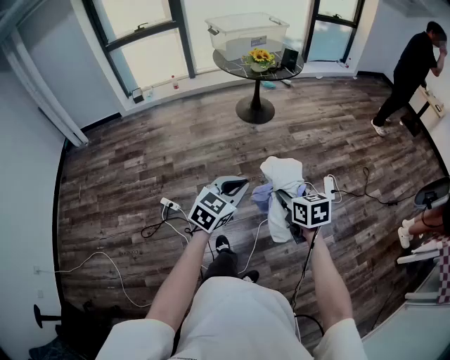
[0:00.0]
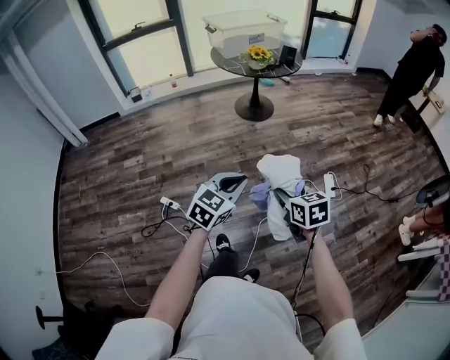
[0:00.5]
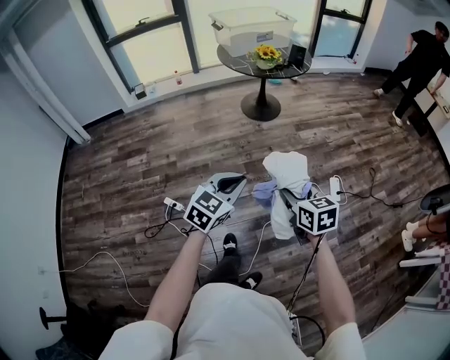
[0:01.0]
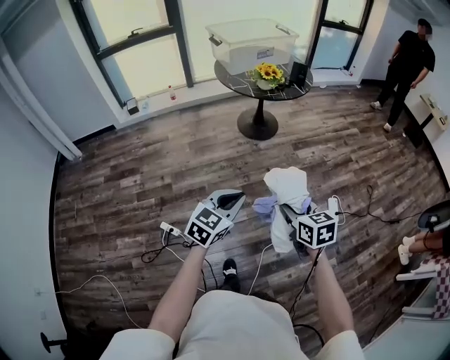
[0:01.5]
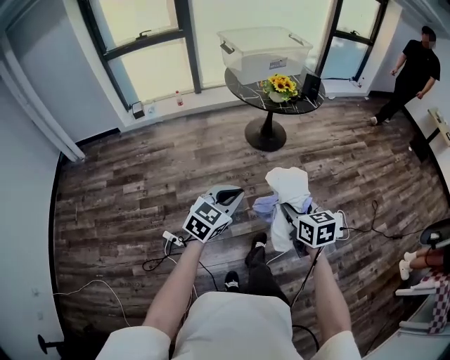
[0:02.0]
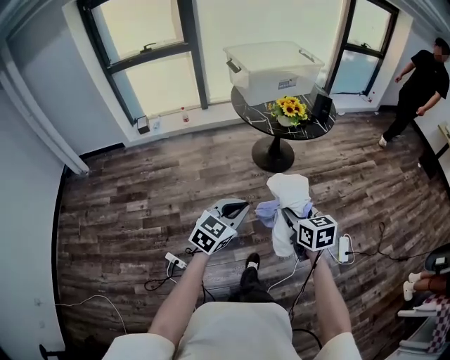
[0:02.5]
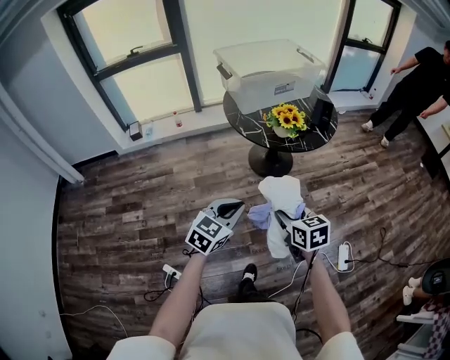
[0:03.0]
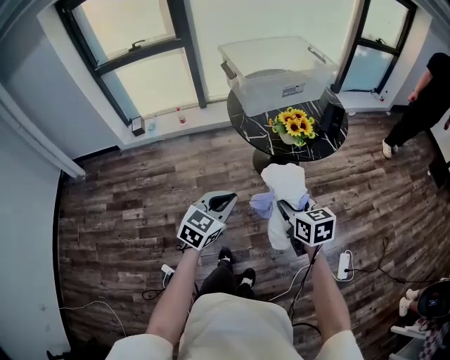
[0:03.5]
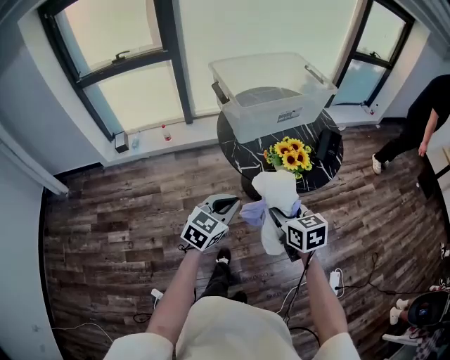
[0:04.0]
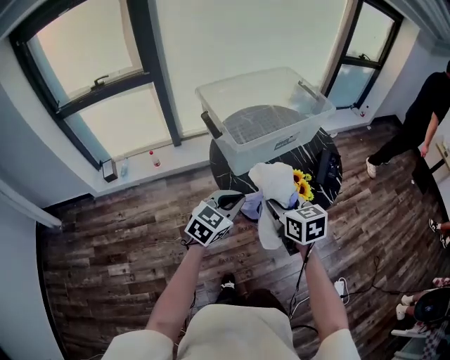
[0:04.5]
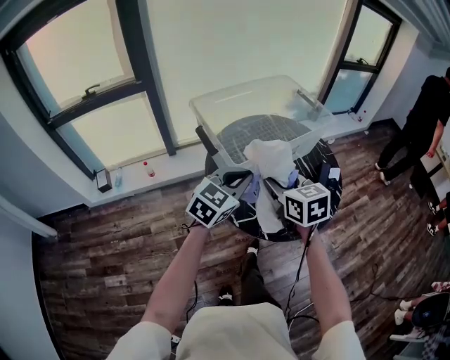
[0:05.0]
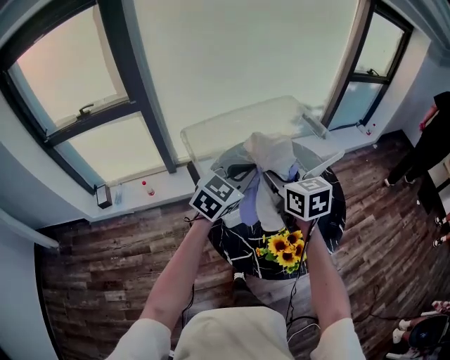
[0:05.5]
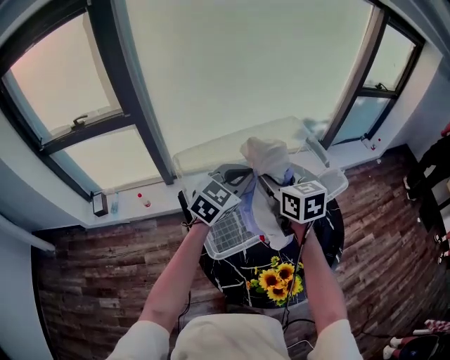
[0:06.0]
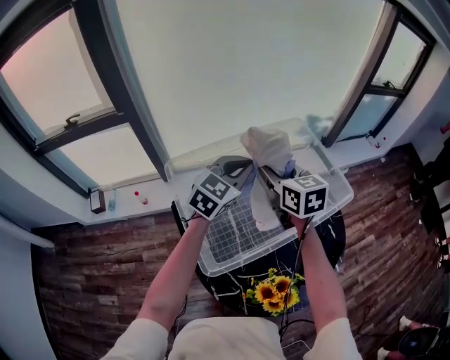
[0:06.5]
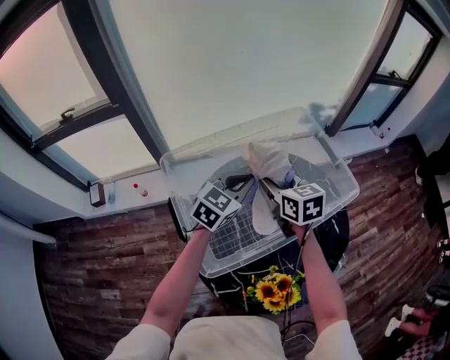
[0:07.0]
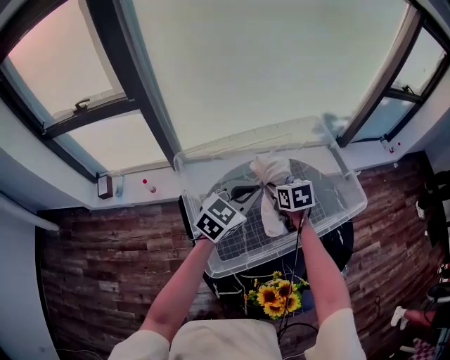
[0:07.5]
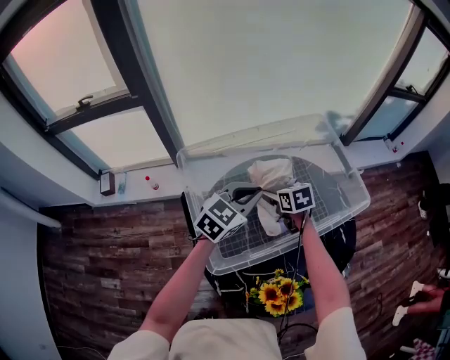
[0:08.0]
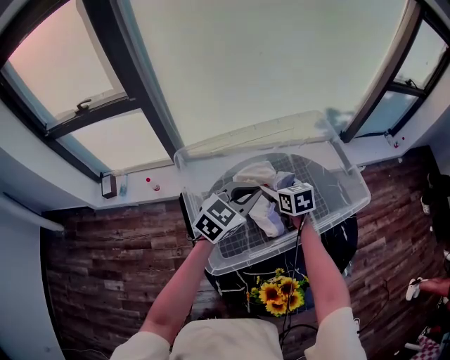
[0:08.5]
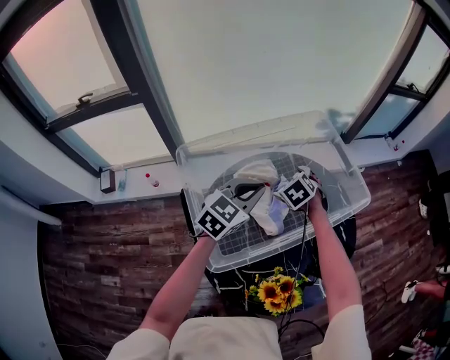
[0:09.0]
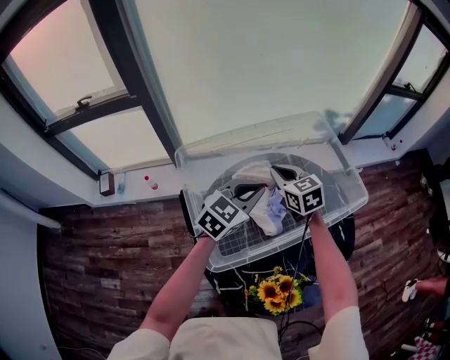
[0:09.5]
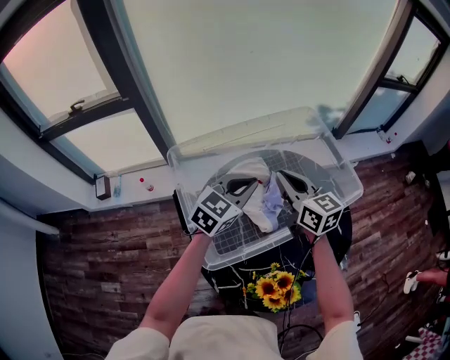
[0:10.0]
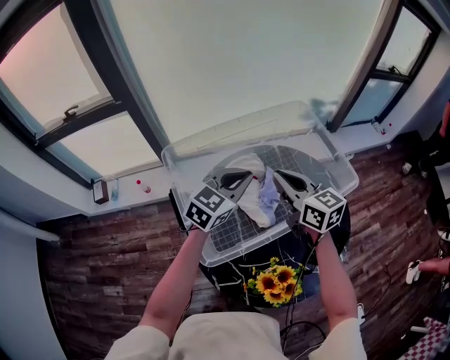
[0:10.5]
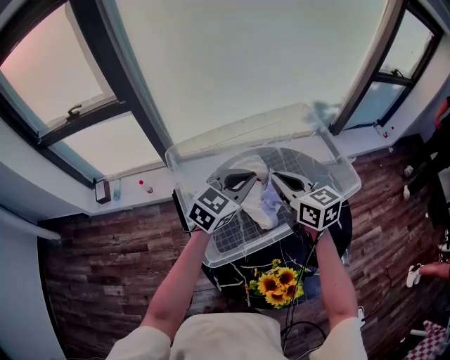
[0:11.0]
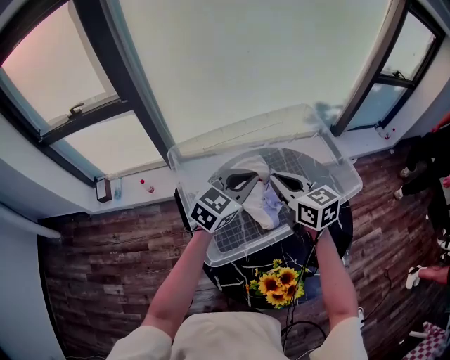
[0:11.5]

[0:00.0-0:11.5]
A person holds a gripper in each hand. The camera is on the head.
0:00.0 to 0:02.0: Both grippers move forward and to the left, some 25 cm.
0:02.0 to 0:04.0: Both grippers are carried forward, roughly 50 cm.
0:04.0 to 0:06.0: The pair of grippers is taken forward, roughly 60 cm.
0:06.0 to 0:07.5: The left gripper is displaced downward by about 10 cm; the right gripper shifts approximately 20 cm downward and forward, and turns by about 20 degrees.
0:07.5 to 0:09.5: The right gripper heads upward, covering about 5 cm, turns by approximately 20 degrees, and opens and closes again.
0:09.5 to 0:11.5: The right gripper shifts approximately 10 cm backward and upward.

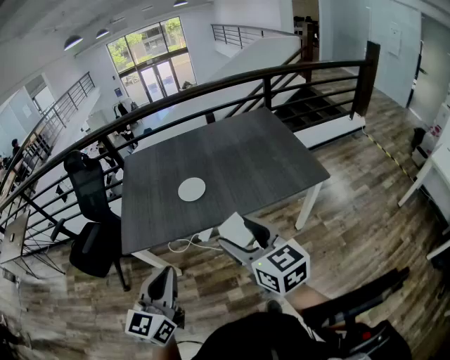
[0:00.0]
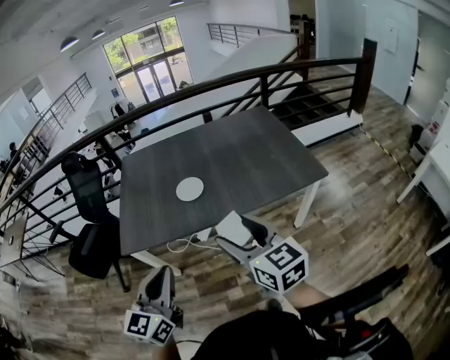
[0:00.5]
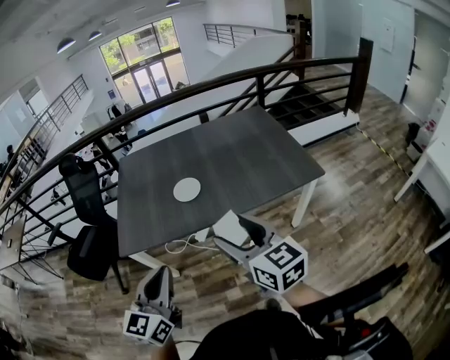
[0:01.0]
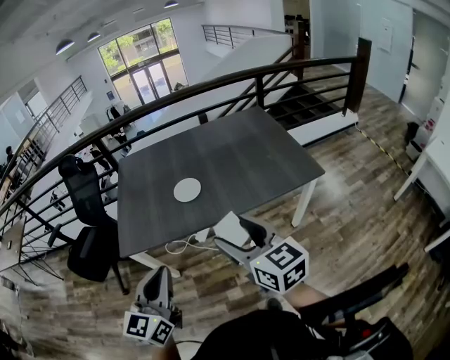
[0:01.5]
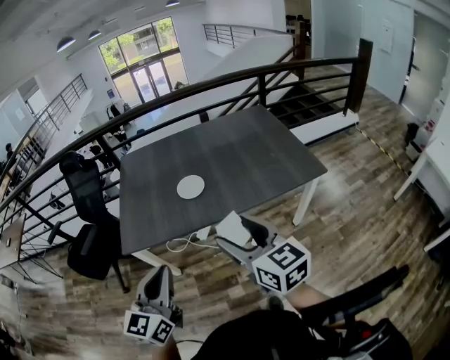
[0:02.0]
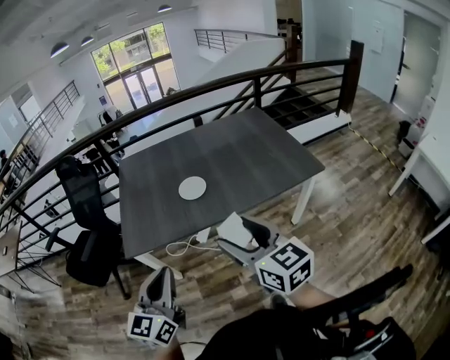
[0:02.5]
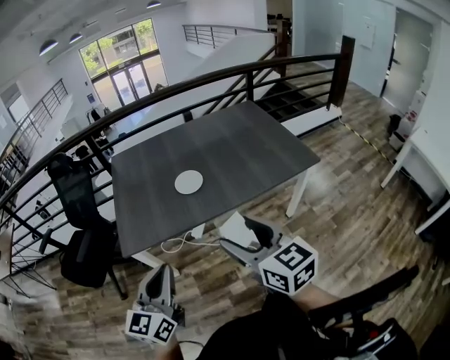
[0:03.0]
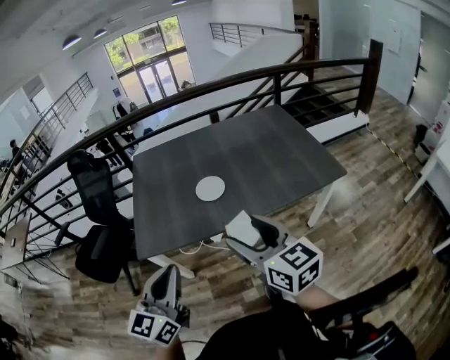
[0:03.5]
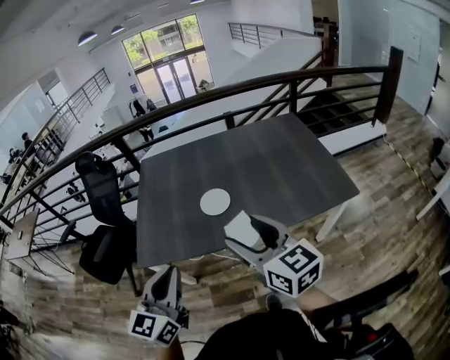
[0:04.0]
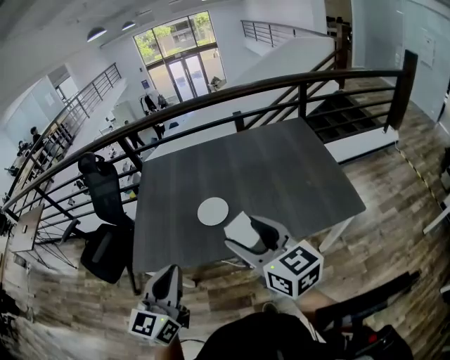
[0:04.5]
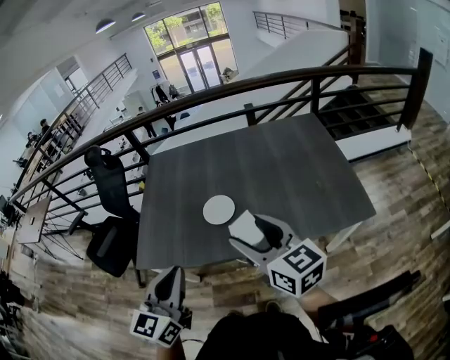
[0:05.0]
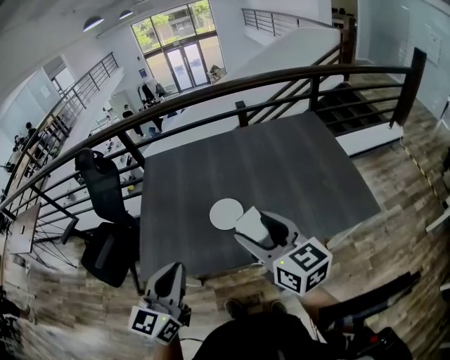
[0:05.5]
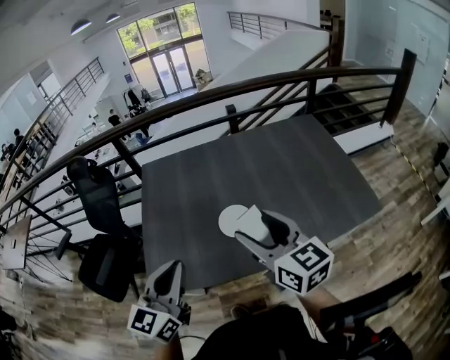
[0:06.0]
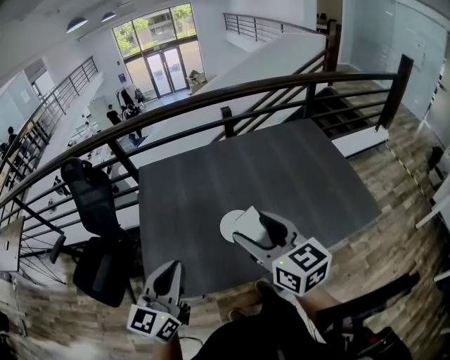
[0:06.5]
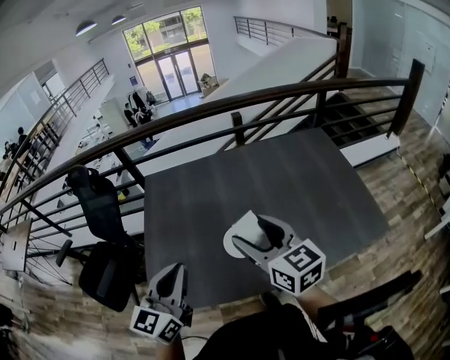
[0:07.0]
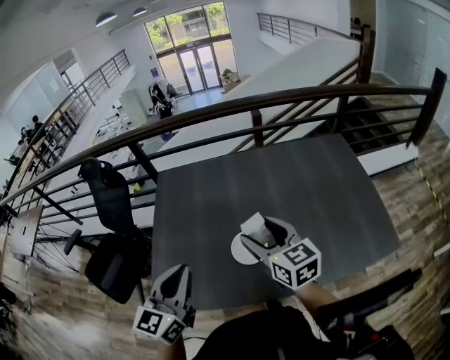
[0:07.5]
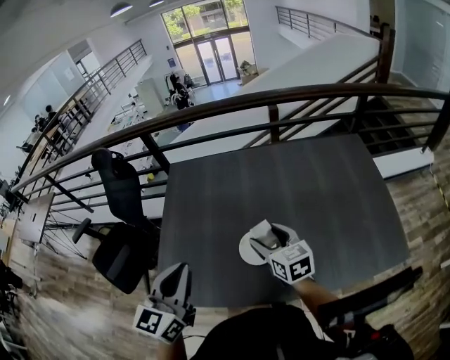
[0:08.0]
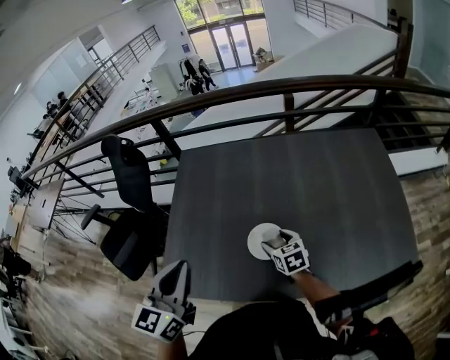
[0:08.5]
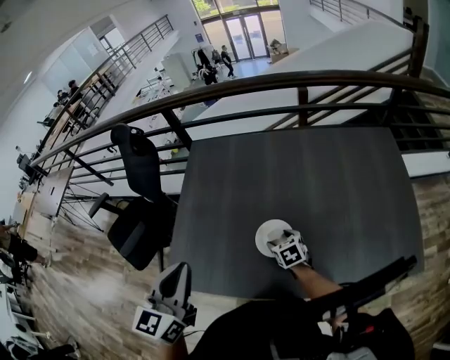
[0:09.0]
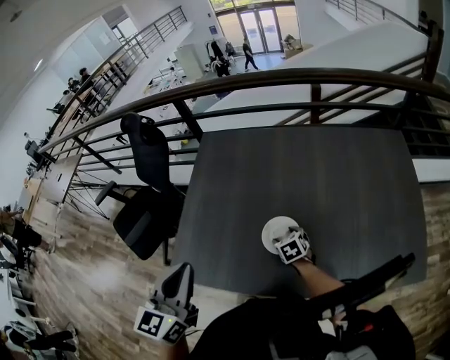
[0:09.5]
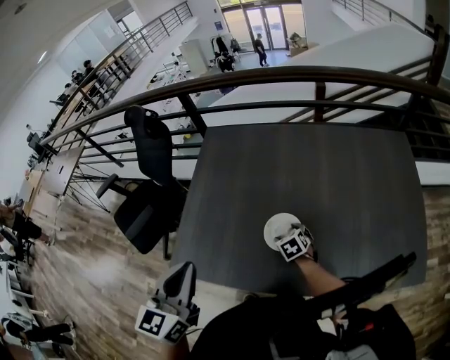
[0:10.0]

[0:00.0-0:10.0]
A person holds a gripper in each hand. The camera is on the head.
0:00.0 to 0:02.0: The grippers stay close to where they were, moving slightly.
0:02.0 to 0:04.0: The grippers both shift forward by about 15 cm.
0:04.0 to 0:06.0: Both grippers move forward, some 25 cm.
0:06.0 to 0:08.0: The right gripper shifts roughly 25 cm forward and downward, while the left gripper travels forward by roughly 15 cm.
0:08.0 to 0:10.0: The right gripper heads downward, covering some 25 cm, and tilts its fingers roughly 40 degrees downward.

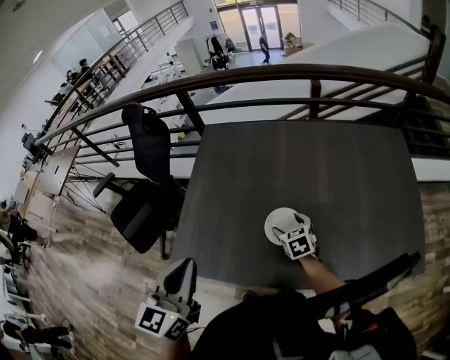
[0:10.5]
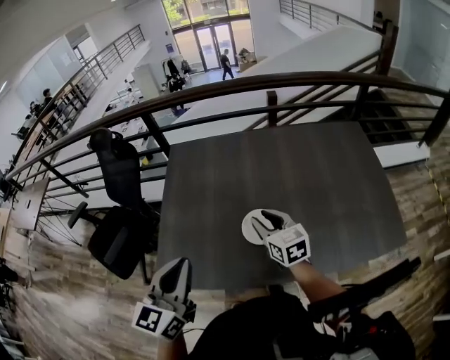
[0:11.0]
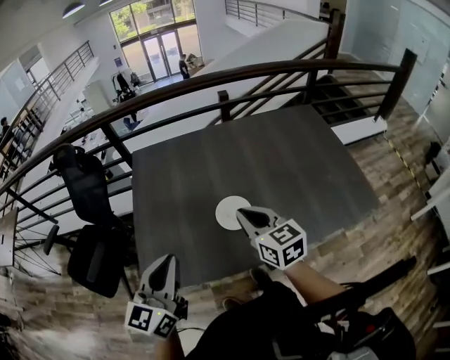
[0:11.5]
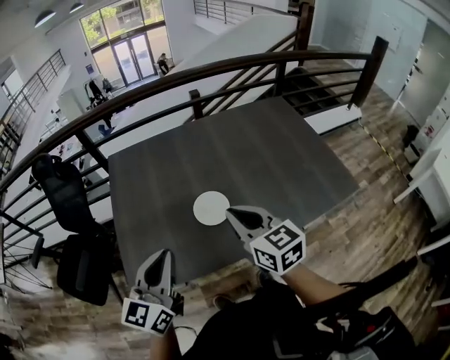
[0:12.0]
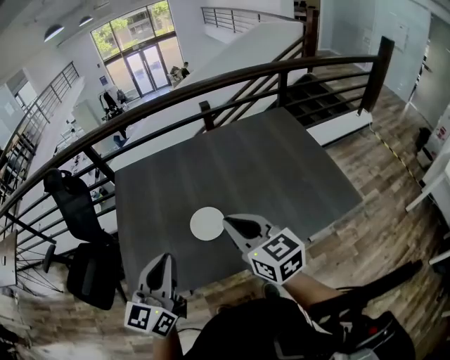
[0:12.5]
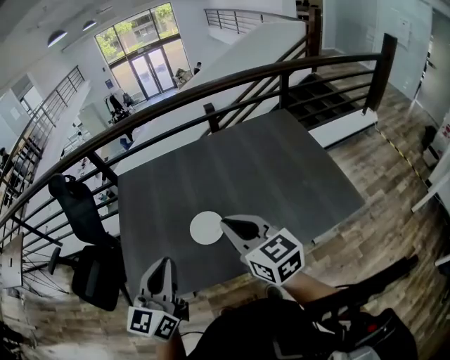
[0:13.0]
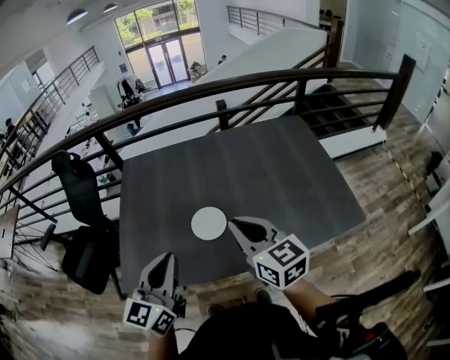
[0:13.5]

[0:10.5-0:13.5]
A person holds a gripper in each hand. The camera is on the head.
0:10.5 to 0:12.0: The left gripper travels backward by some 10 cm, and turns by roughly 30 degrees. The right gripper shifts roughly 35 cm upward and backward, swivels roughly 30 degrees, and closes up.
0:12.0 to 0:13.5: The grippers both shift to the right by about 10 cm.

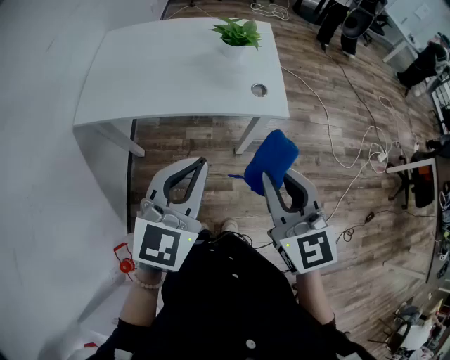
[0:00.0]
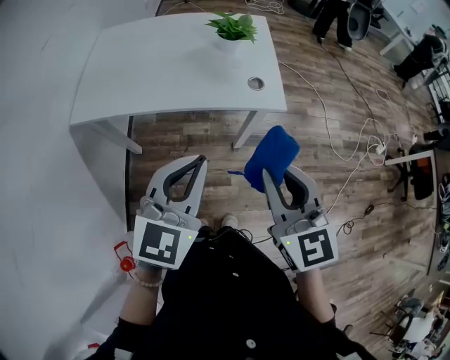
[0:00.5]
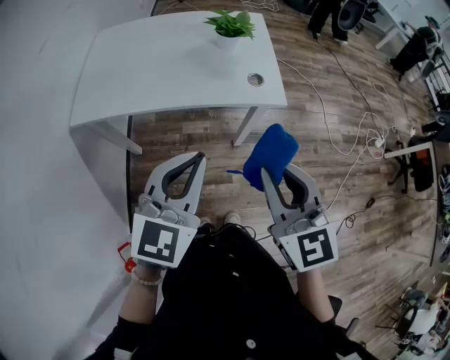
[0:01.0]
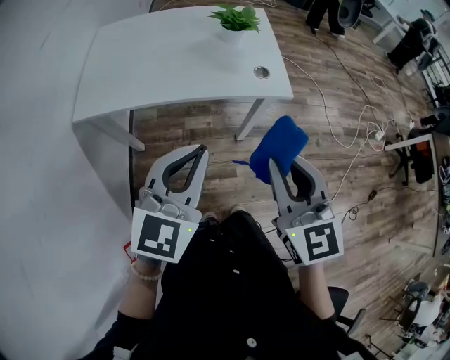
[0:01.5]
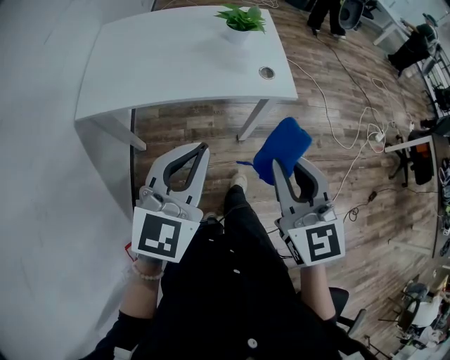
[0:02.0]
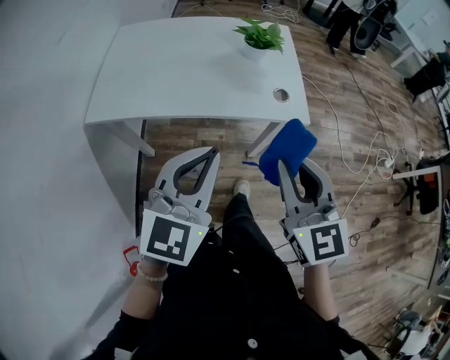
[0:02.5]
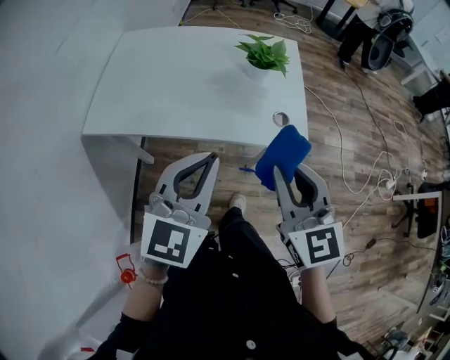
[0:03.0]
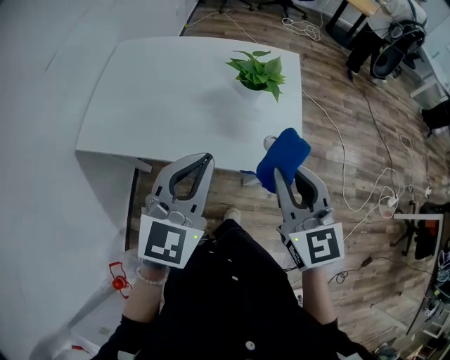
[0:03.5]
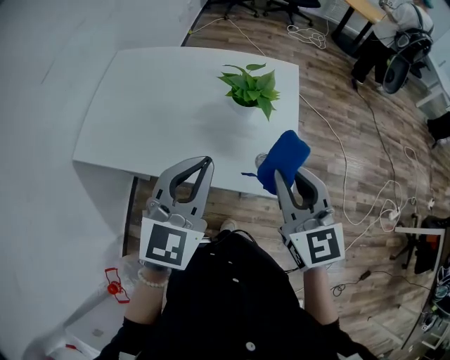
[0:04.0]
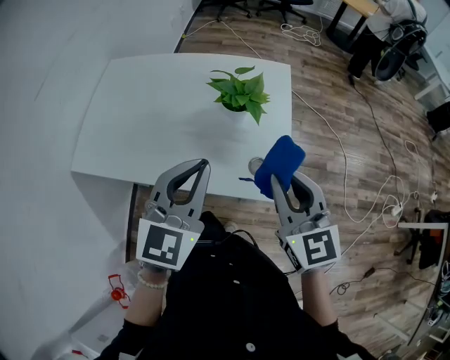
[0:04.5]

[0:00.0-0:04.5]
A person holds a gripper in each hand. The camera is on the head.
0:00.0 to 0:02.0: The left gripper moves to the left, roughly 5 cm, while the right gripper changes place by about 5 cm.
0:02.0 to 0:04.5: Both grippers move forward and to the right, about 35 cm.
